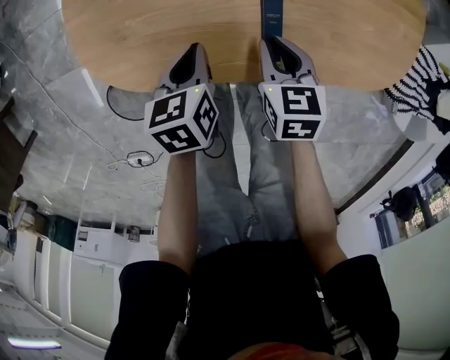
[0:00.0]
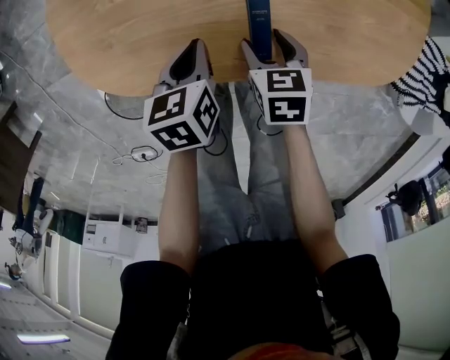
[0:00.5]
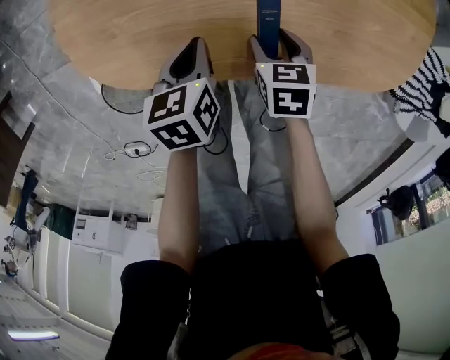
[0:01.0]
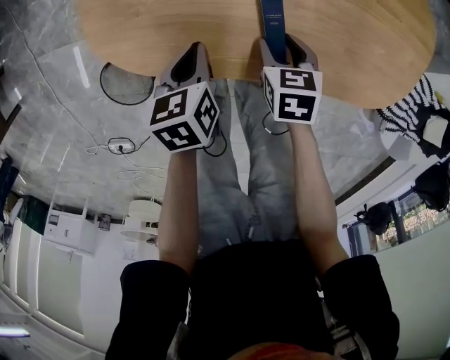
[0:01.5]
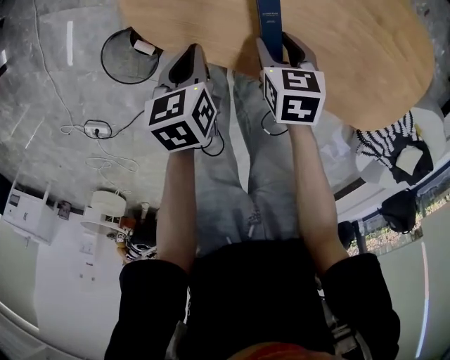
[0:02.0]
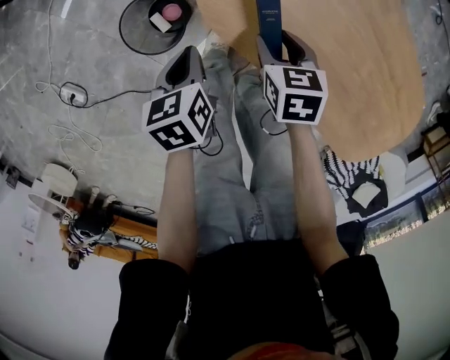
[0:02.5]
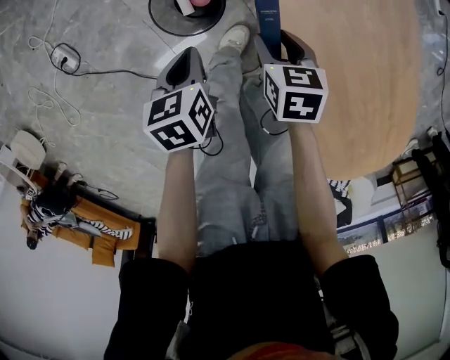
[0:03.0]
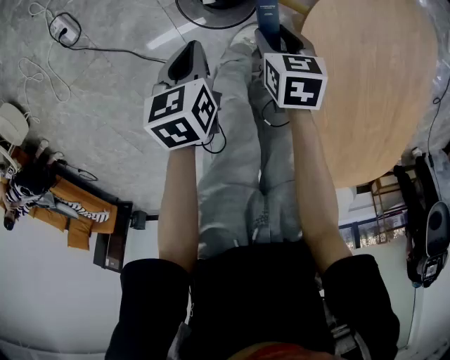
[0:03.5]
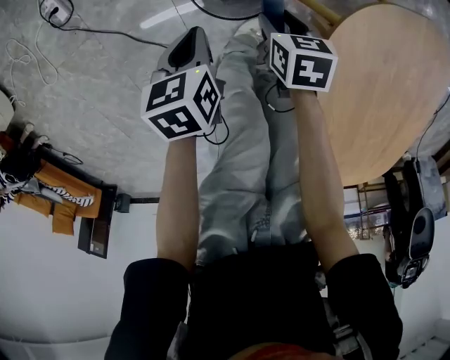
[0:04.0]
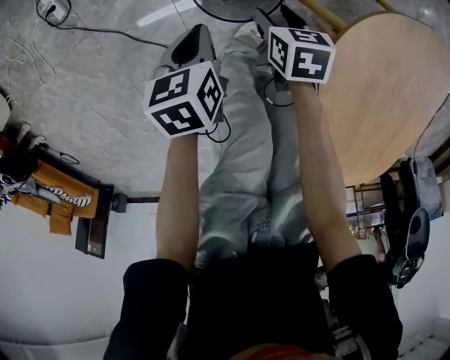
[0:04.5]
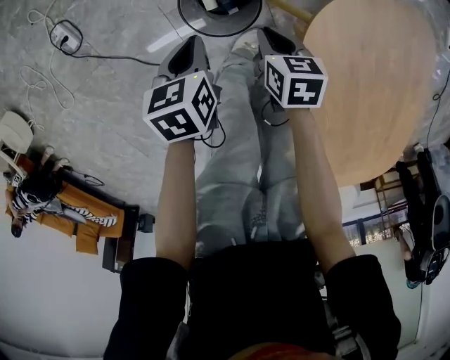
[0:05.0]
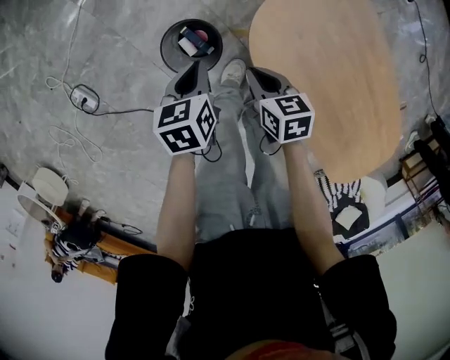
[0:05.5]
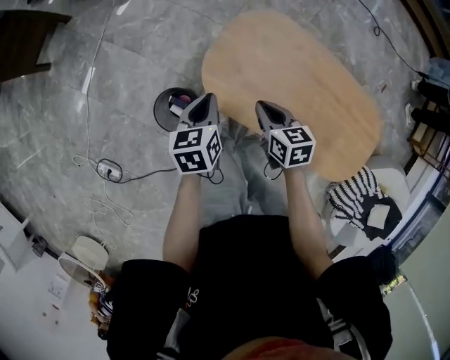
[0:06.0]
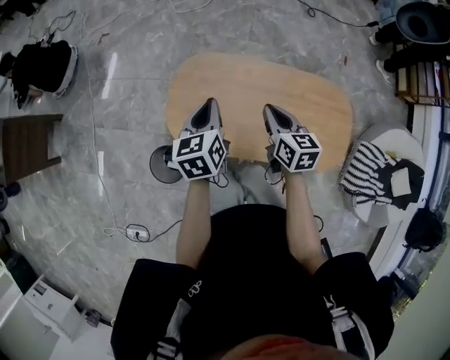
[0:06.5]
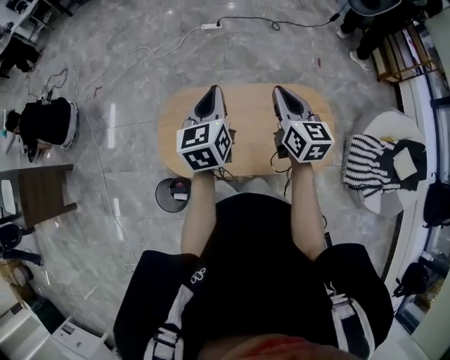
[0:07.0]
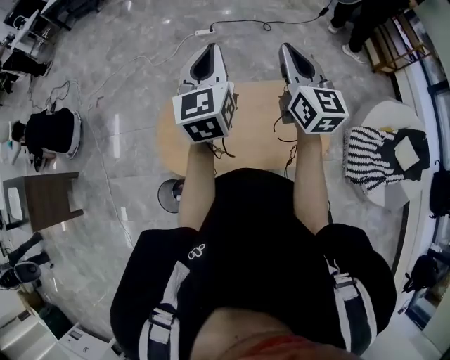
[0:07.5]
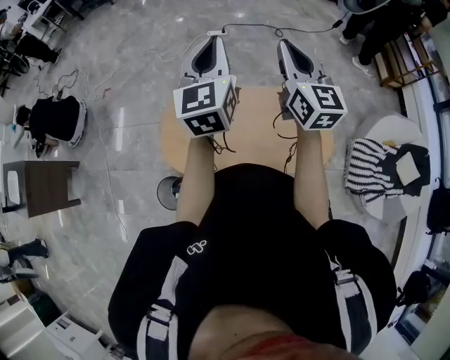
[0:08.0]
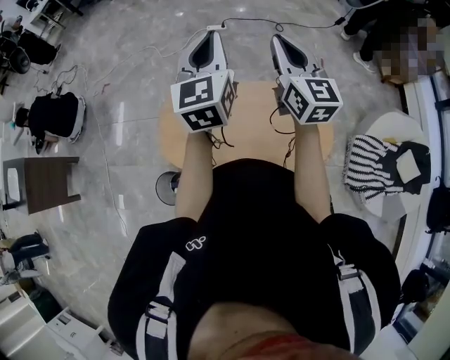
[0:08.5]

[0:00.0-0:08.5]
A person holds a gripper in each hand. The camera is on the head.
0:00.0 to 0:02.0: The right gripper changes place by about 10 cm, turns by about 20 degrees, and opens. The left gripper shifts by about 15 cm, and changes its angle by roughly 20 degrees.
0:02.0 to 0:04.0: The left gripper moves approximately 35 cm, and twists some 40 degrees counterclockwise, seen from behind; the right gripper ends up about 40 cm from where it was, and rotates approximately 50 degrees.
0:04.0 to 0:06.5: Both grippers are carried approximately 50 cm. The left gripper tips its fingers upward by some 30 degrees, while the right gripper moves upward, approximately 50 cm, angles its fingers upward, by some 30 degrees, and closes up.
0:06.5 to 0:08.5: The two grippers go some 35 cm upward and to the right. The left gripper turns by about 40 degrees. Meanwhile the right gripper points its fingers approximately 30 degrees further upward.

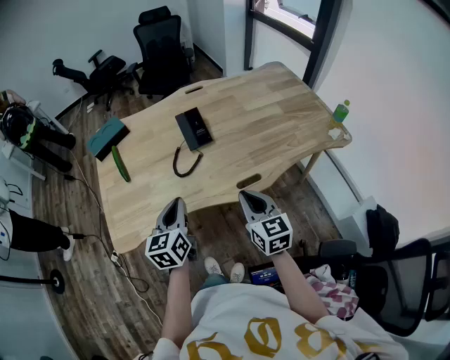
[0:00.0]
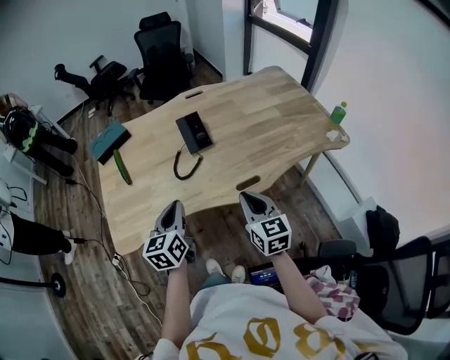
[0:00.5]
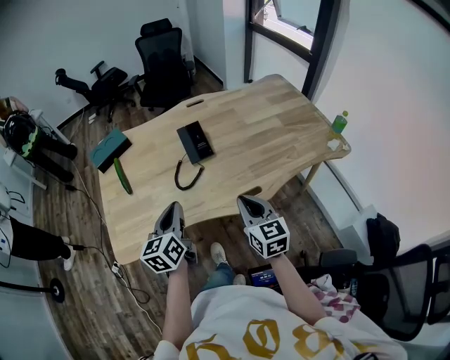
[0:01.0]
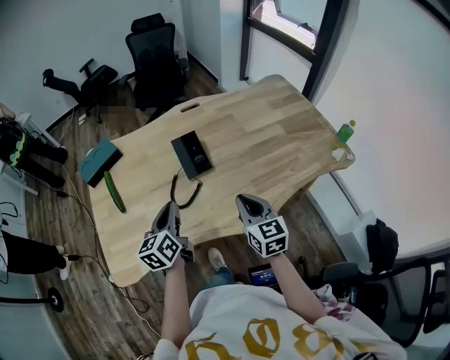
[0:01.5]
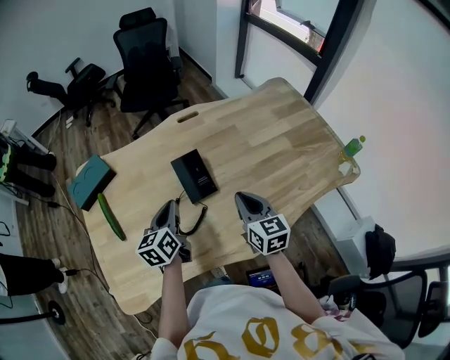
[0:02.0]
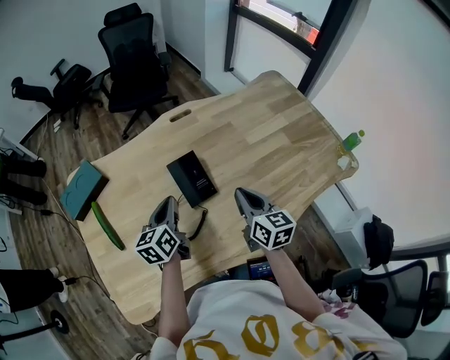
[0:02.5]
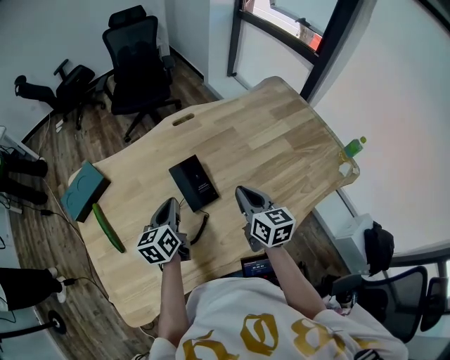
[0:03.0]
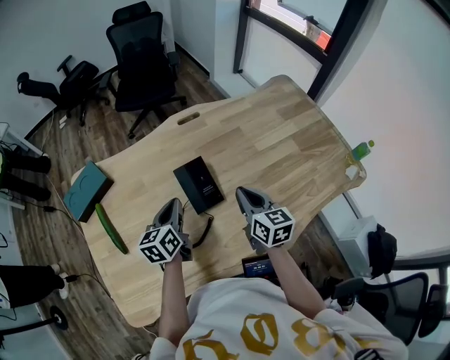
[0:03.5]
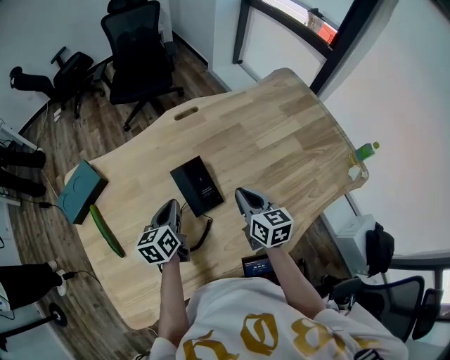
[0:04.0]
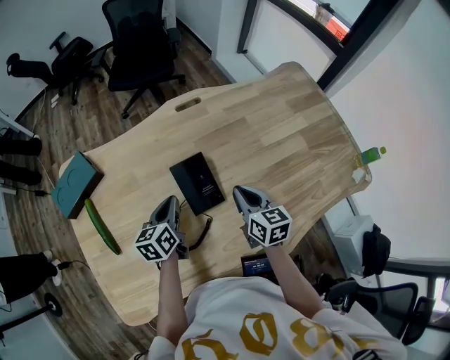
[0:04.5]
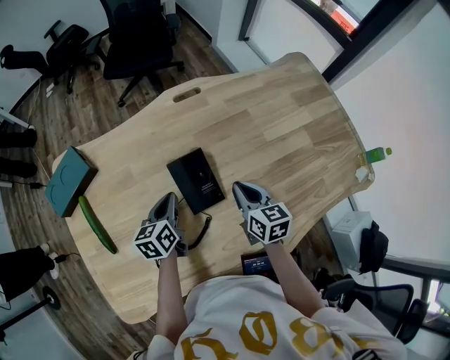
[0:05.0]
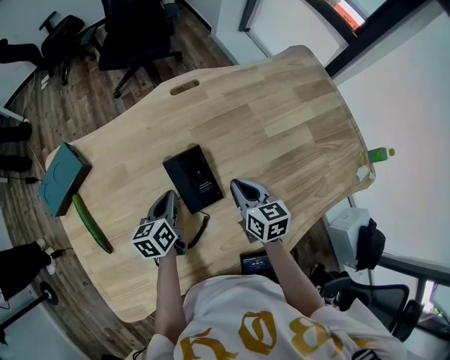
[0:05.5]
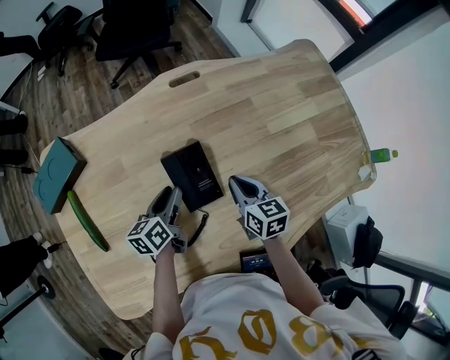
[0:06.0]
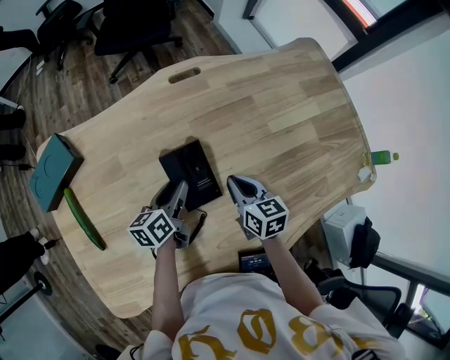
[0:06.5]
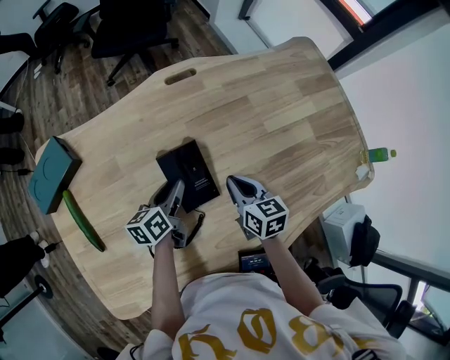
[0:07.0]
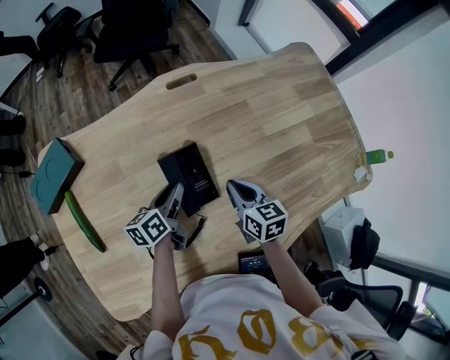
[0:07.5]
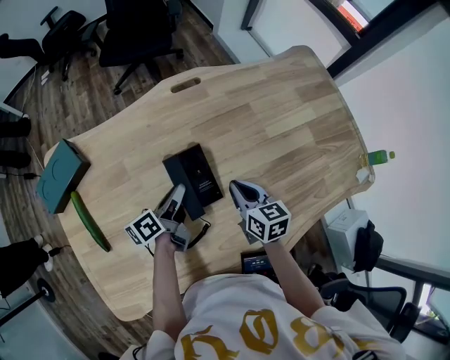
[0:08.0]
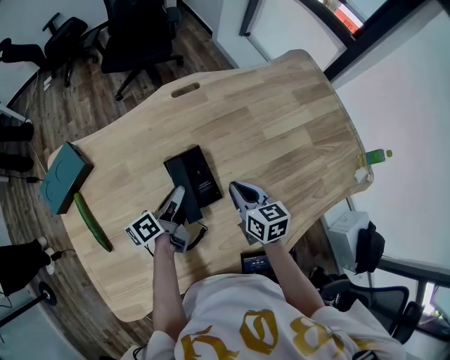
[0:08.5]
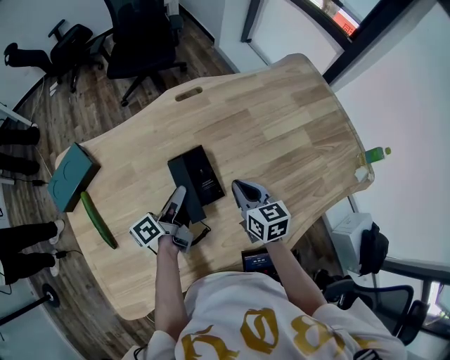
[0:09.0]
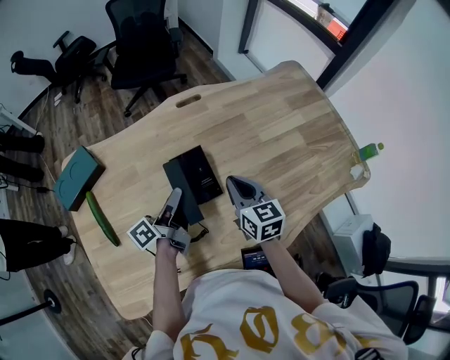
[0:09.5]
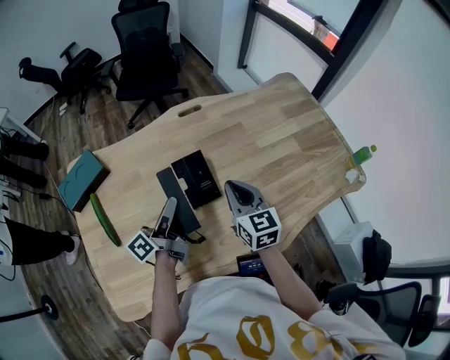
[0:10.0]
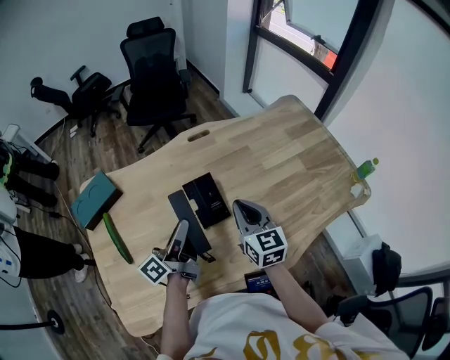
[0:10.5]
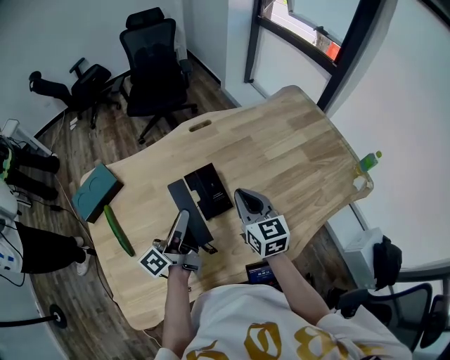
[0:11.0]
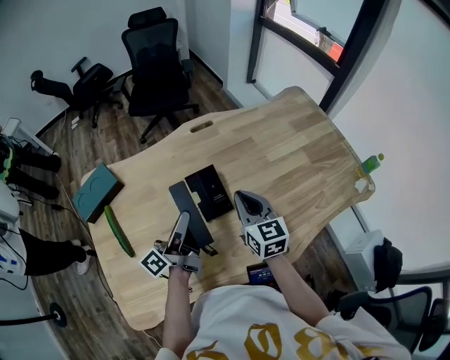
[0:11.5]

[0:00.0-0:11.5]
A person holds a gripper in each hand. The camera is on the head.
0:00.0 to 0:02.0: The grippers both shift forward by some 25 cm.
0:02.0 to 0:04.0: The two grippers go roughly 10 cm forward and downward.
0:04.0 to 0:06.0: Both grippers move downward, about 5 cm. The left gripper opens its fingers.
0:06.0 to 0:07.5: The grippers make only small movements.
0:07.5 to 0:09.5: Both grippers travel together upward, some 10 cm. The left gripper rotates some 30 degrees.
0:09.5 to 0:11.5: The left gripper shifts some 5 cm upward. Meanwhile the right gripper ends up some 5 cm from where it was.

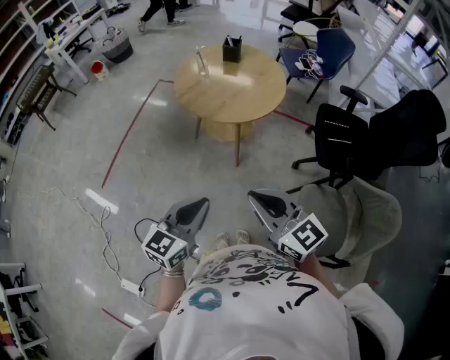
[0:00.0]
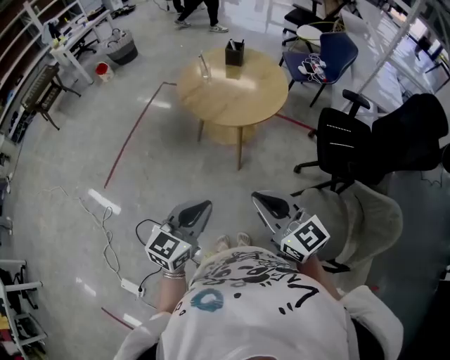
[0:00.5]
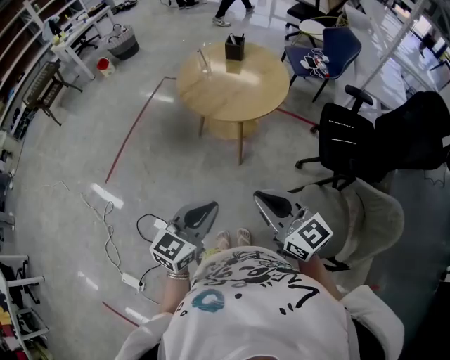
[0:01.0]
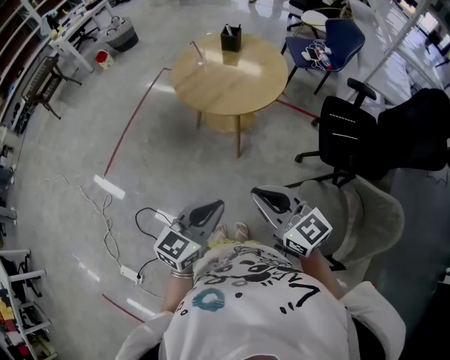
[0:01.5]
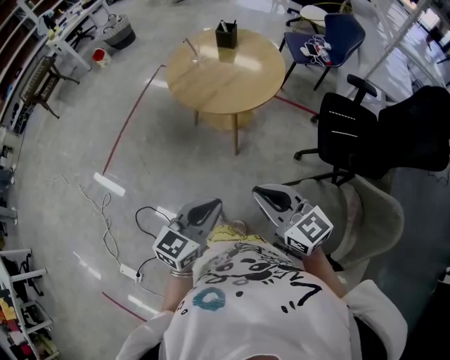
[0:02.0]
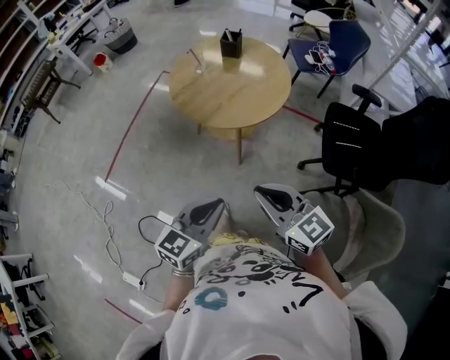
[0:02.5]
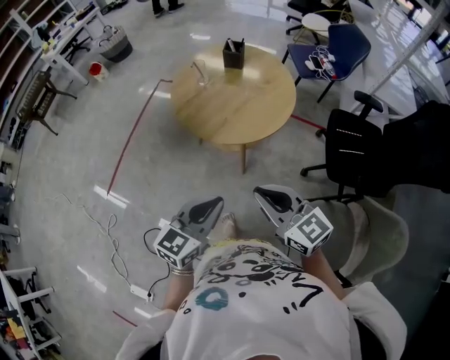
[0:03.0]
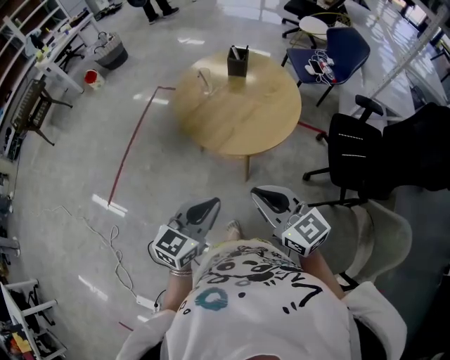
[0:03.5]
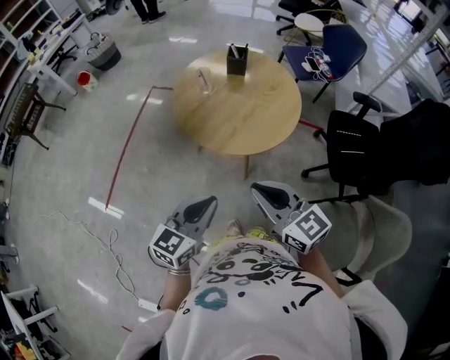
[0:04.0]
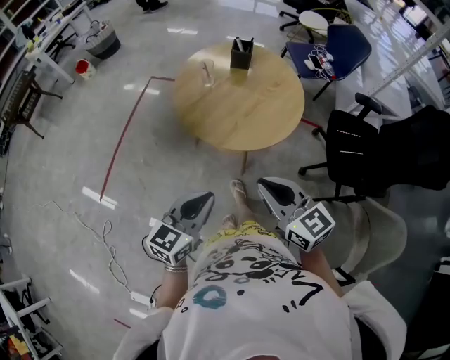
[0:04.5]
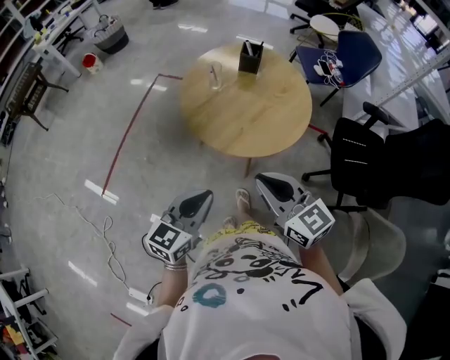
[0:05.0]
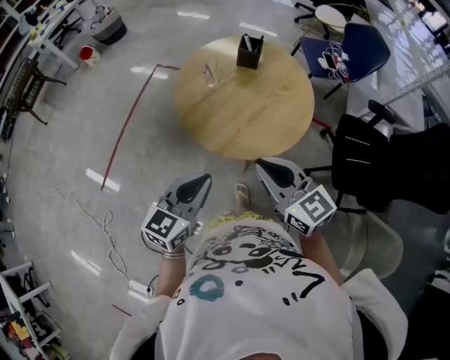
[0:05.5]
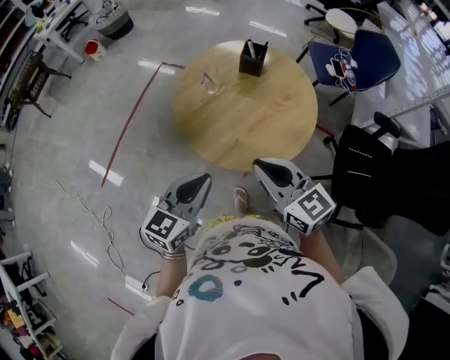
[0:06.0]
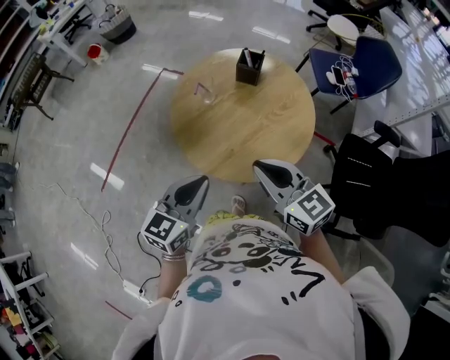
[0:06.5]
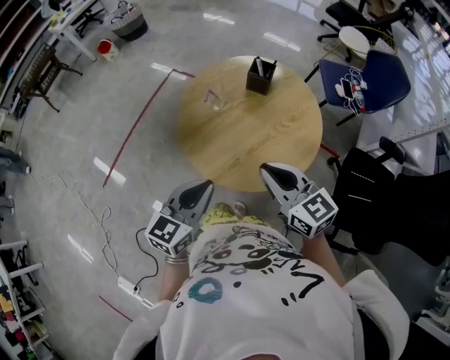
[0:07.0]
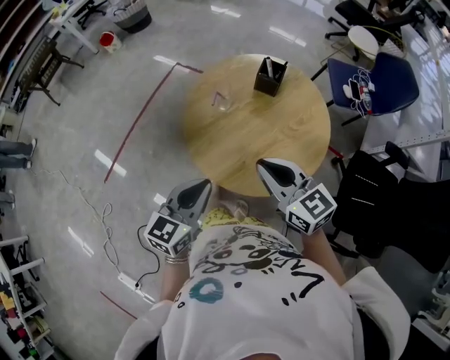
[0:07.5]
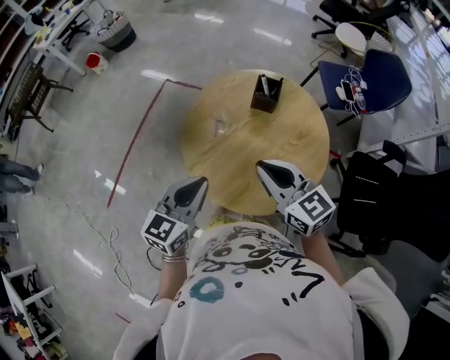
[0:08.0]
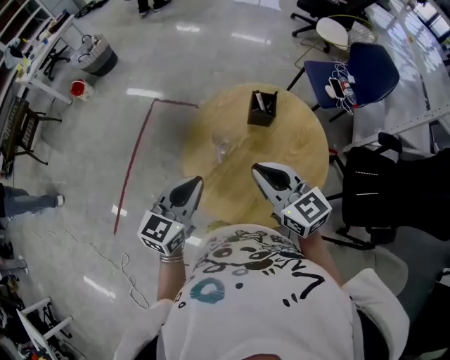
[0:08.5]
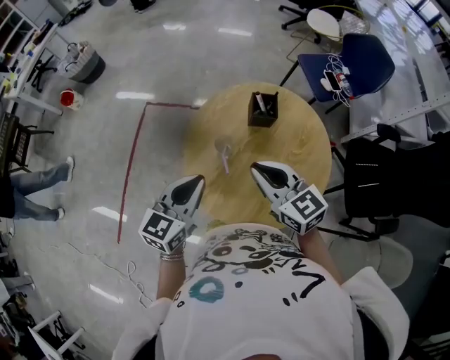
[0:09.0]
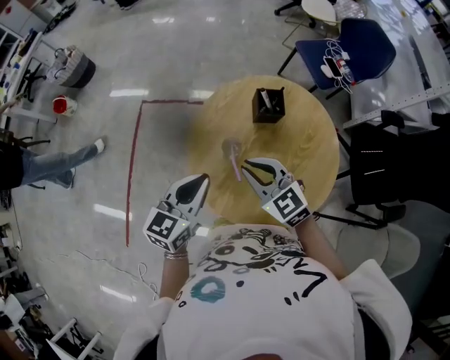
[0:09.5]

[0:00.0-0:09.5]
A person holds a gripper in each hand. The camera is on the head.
0:00.0 to 0:02.0: The grippers both shift to the right by some 10 cm.
0:02.0 to 0:04.0: The two grippers go about 25 cm forward and to the left.
0:04.0 to 0:05.5: The grippers both shift forward by some 10 cm.
0:05.5 to 0:07.5: Both grippers move forward, roughly 15 cm.
0:07.5 to 0:09.5: The right gripper travels forward and to the left by roughly 25 cm, and swivels some 20 degrees, while the left gripper goes roughly 25 cm forward, and swivels some 20 degrees.
